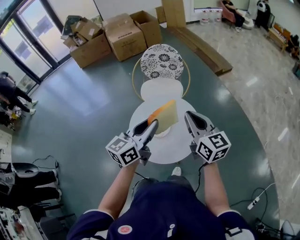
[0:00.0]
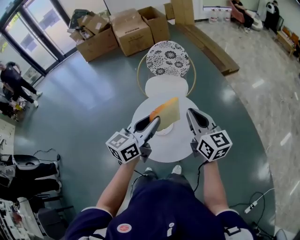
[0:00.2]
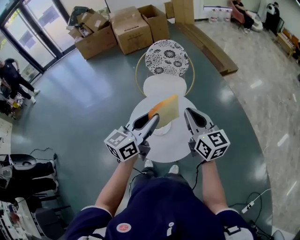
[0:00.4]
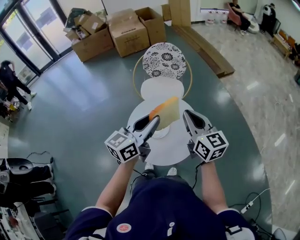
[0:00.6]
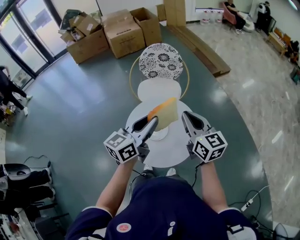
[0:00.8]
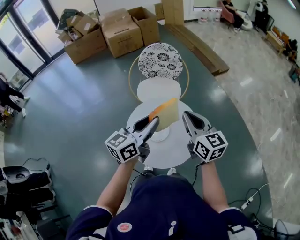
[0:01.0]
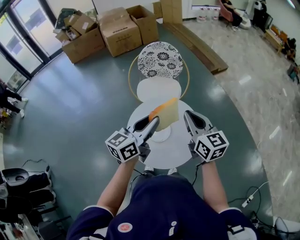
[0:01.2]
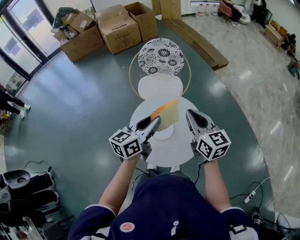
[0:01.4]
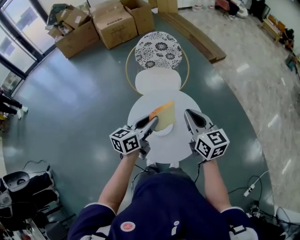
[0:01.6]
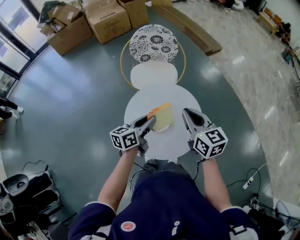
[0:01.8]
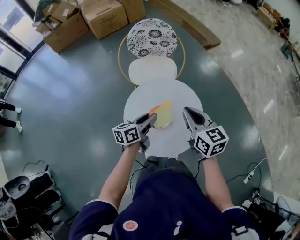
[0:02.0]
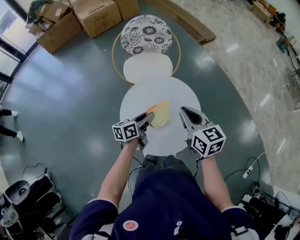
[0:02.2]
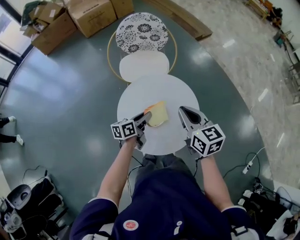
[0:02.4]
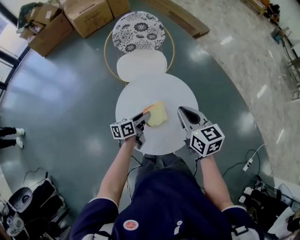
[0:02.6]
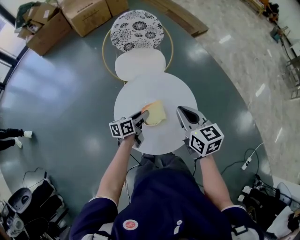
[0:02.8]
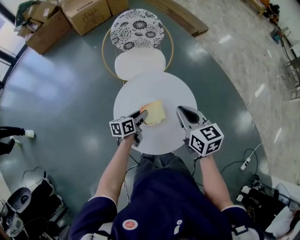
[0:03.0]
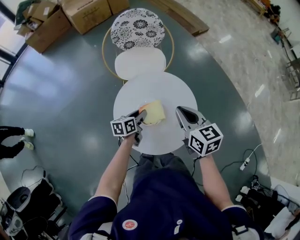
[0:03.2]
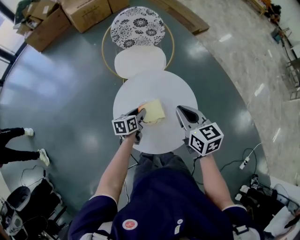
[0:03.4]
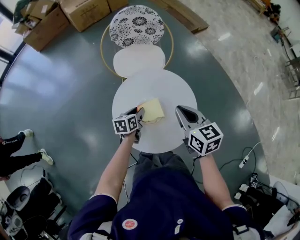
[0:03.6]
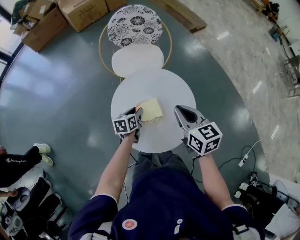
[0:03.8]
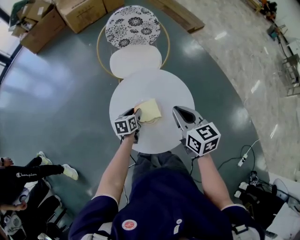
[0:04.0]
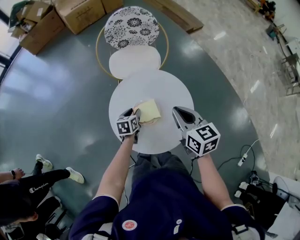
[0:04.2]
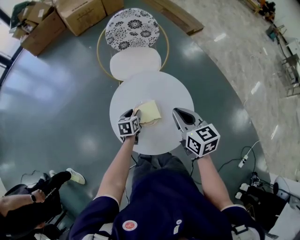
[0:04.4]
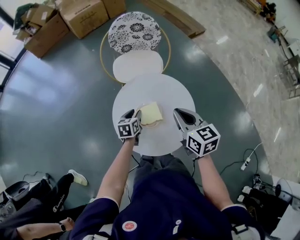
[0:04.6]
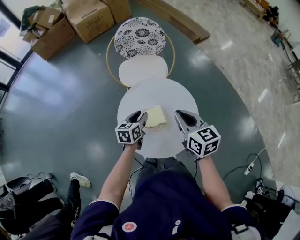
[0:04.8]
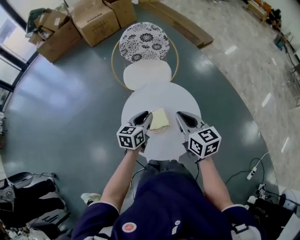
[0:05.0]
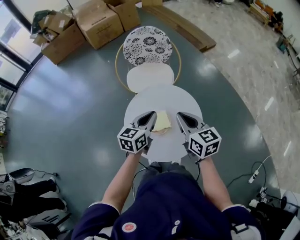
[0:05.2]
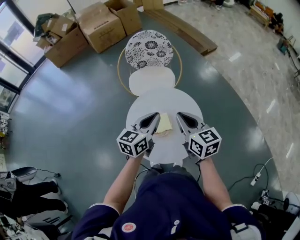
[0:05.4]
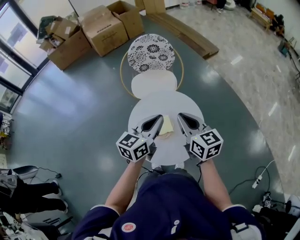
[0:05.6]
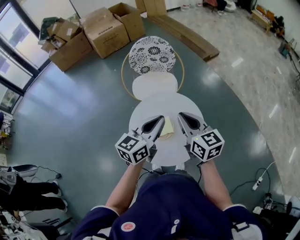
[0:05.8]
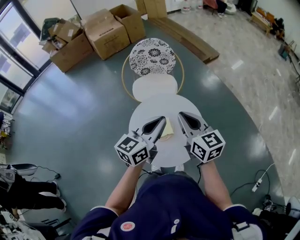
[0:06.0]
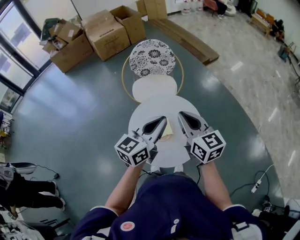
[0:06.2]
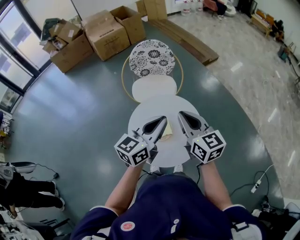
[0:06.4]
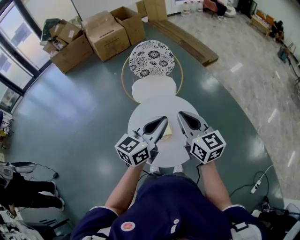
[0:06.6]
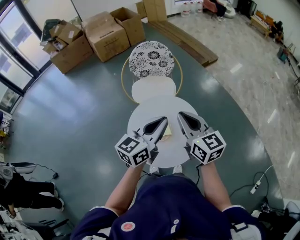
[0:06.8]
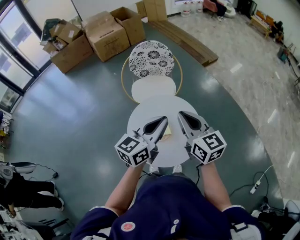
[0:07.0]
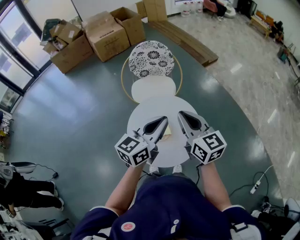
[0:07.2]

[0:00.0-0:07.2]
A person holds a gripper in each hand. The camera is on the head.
0.0 to 1.4 s: The left gripper travels forward and downward by roughly 10 cm. The right gripper moves forward, approximately 5 cm.
1.4 to 2.8 s: The left gripper travels downward by approximately 25 cm, and swivels some 30 degrees. Meanwhile the right gripper travels downward by about 10 cm.
2.8 to 4.4 s: The left gripper heads downward, covering about 5 cm, and swivels about 30 degrees.
4.4 to 5.8 s: The right gripper is displaced upward by about 10 cm, while the left gripper heads upward, covering some 30 cm, angles its fingers upward, by some 40 degrees, and closes up.
5.8 to 7.2 s: The grippers stay close to where they were, moving slightly.

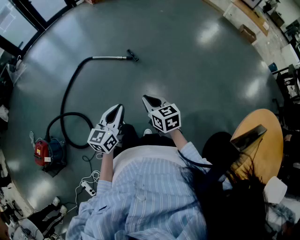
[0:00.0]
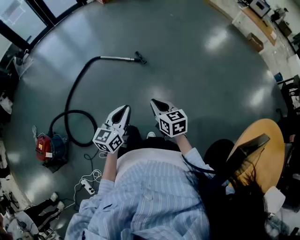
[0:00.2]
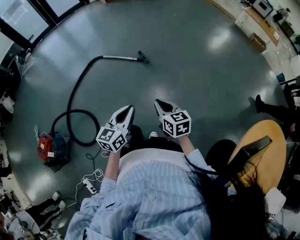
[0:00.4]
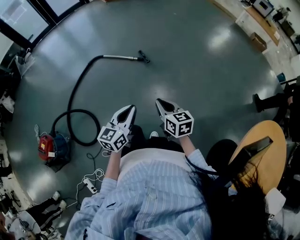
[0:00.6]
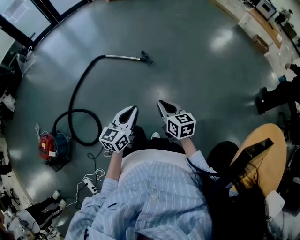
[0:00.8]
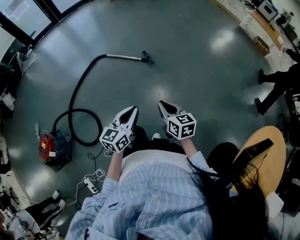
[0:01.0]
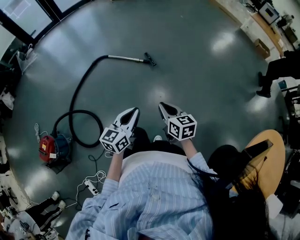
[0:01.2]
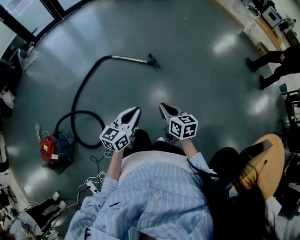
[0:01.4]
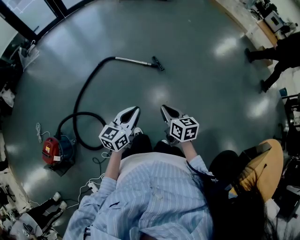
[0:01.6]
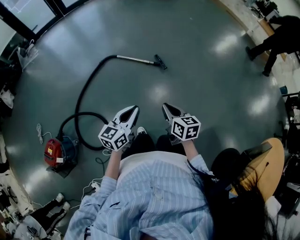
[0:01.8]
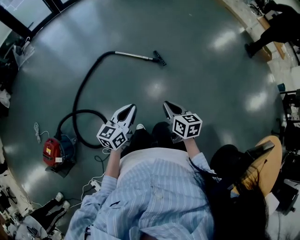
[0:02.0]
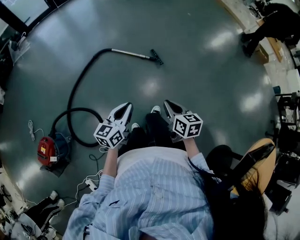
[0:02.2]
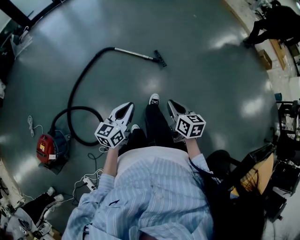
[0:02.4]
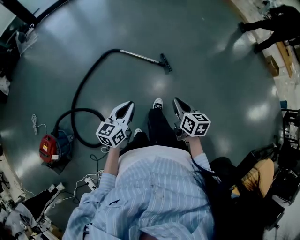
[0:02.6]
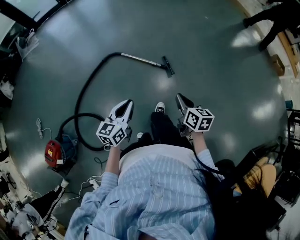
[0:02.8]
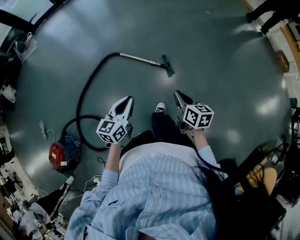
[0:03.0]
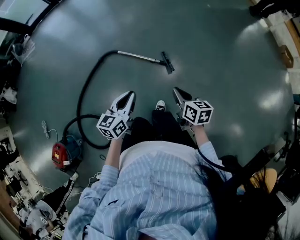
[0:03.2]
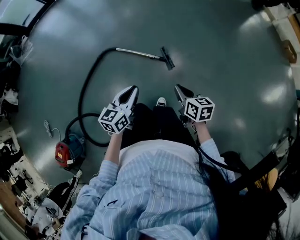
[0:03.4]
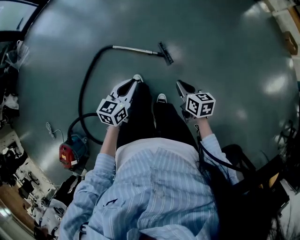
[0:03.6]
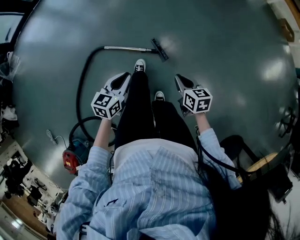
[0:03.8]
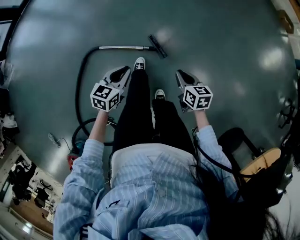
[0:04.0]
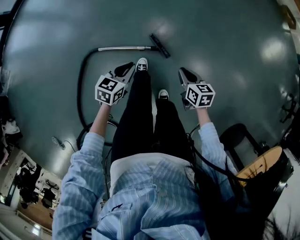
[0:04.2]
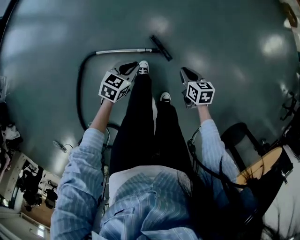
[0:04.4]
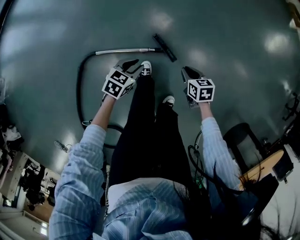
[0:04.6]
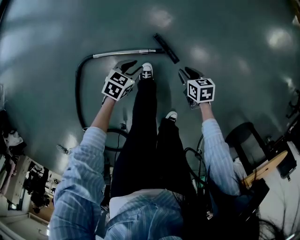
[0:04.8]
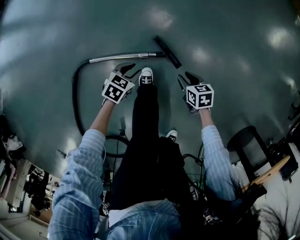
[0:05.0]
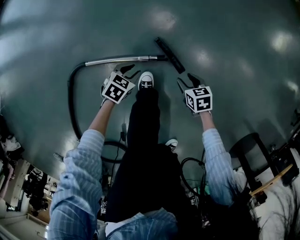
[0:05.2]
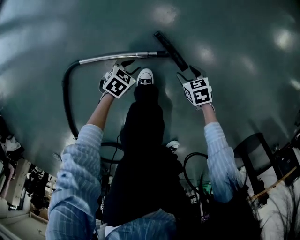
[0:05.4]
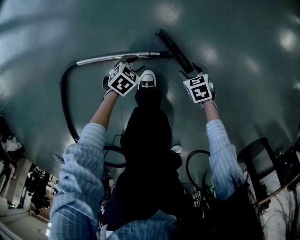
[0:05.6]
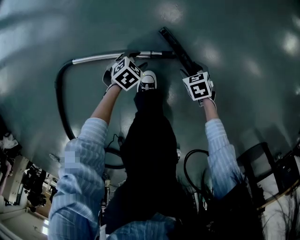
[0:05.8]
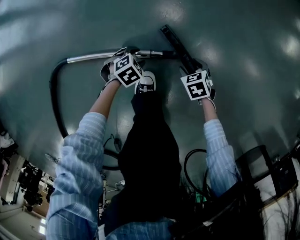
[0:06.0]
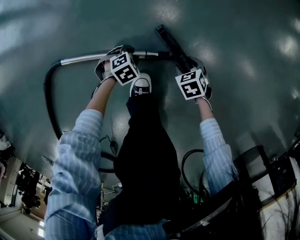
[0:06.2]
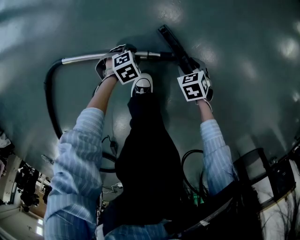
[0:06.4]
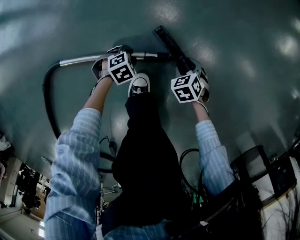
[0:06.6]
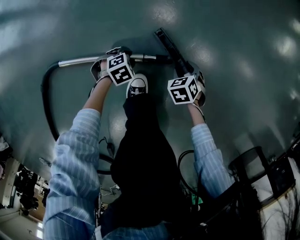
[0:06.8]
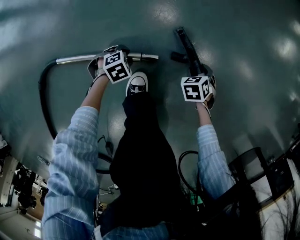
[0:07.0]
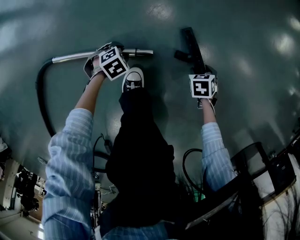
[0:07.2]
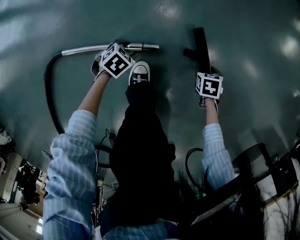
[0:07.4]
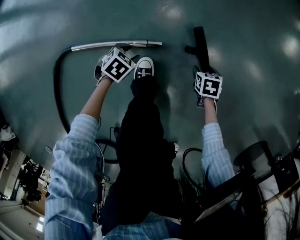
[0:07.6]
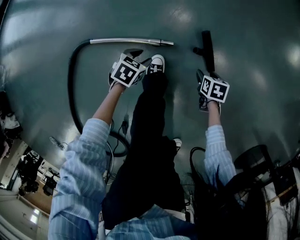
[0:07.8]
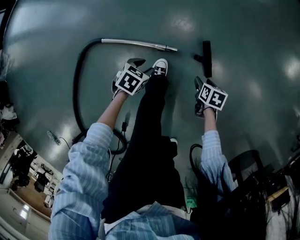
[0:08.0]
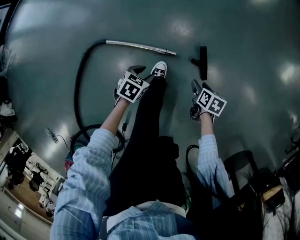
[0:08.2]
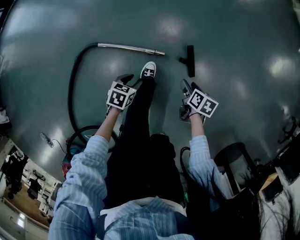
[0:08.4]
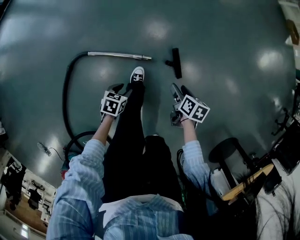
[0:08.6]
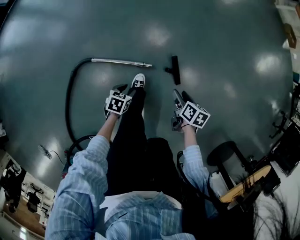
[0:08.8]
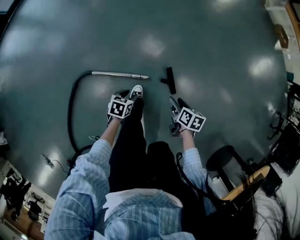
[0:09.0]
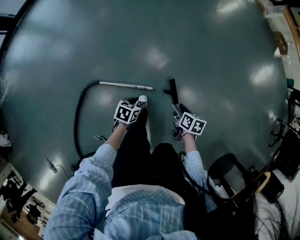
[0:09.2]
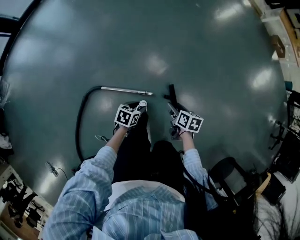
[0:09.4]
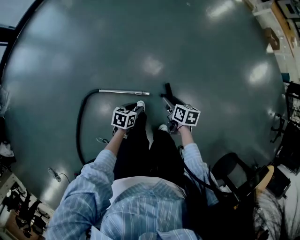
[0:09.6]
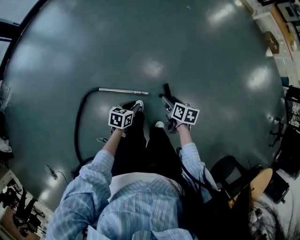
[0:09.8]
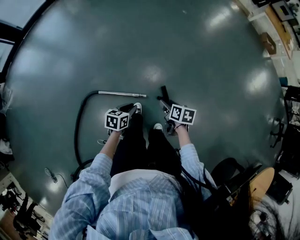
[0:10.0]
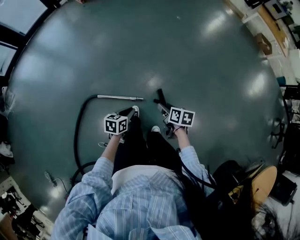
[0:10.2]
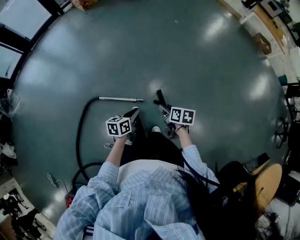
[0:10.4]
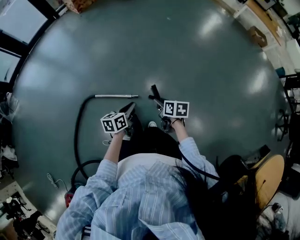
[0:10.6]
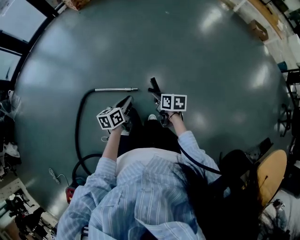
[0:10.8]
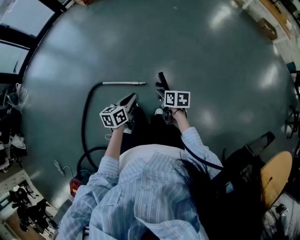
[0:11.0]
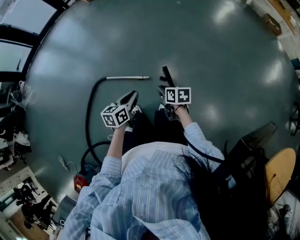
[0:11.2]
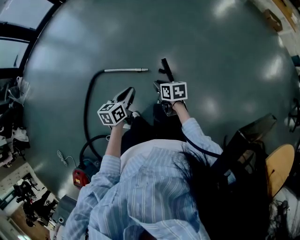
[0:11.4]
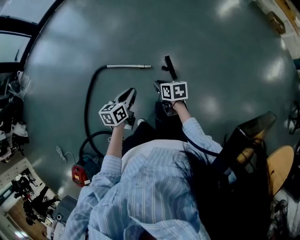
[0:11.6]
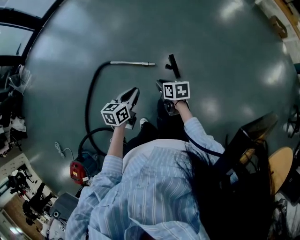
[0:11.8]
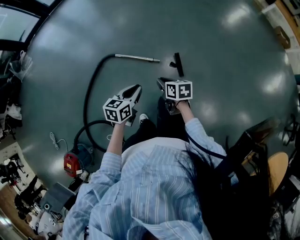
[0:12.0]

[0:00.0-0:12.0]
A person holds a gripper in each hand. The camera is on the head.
0.0 to 1.6 s: The two grippers go roughly 15 cm to the left and forward.
1.6 to 3.0 s: Both grippers travel together forward, roughly 30 cm.
3.0 to 4.4 s: The right gripper shifts by approximately 40 cm, and turns by some 20 degrees. Meanwhile the left gripper moves approximately 50 cm, and swivels approximately 50 degrees.
4.4 to 6.0 s: Both grippers move downward, about 50 cm. The right gripper turns by some 40 degrees, and opens up; the left gripper turns by some 40 degrees, and opens its fingers.
6.0 to 7.6 s: The right gripper shifts by some 15 cm, and rotates about 30 degrees, while the left gripper goes approximately 10 cm upward.
7.6 to 9.0 s: Both grippers move upward, about 40 cm. The left gripper changes its angle by about 40 degrees, while the right gripper rotates about 30 degrees.
9.0 to 10.4 s: The left gripper travels upward and to the right by roughly 30 cm, rotates approximately 30 degrees, and closes; the right gripper travels upward by roughly 20 cm.
10.4 to 12.0 s: The left gripper shifts roughly 20 cm backward. The right gripper is displaced backward and to the left by roughly 20 cm, rotates approximately 20 degrees, and closes up.

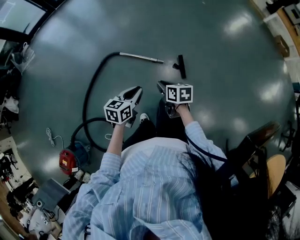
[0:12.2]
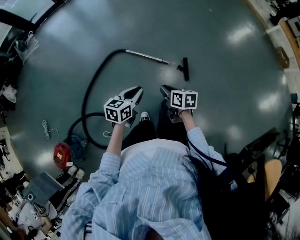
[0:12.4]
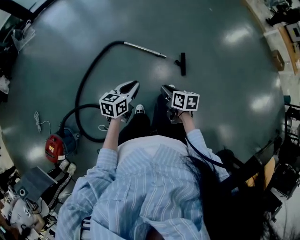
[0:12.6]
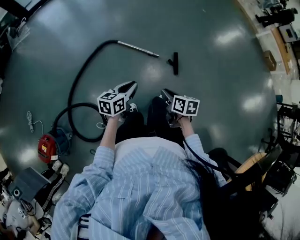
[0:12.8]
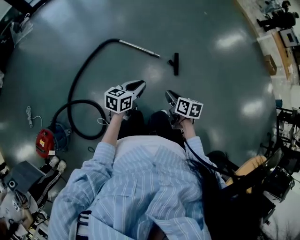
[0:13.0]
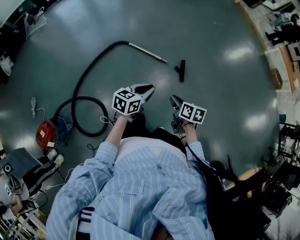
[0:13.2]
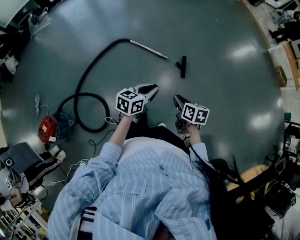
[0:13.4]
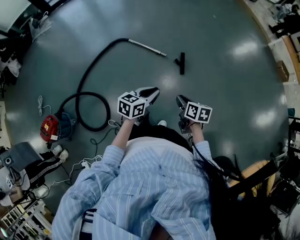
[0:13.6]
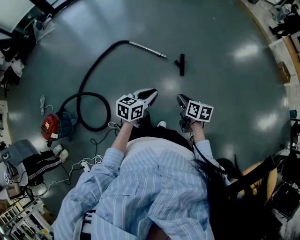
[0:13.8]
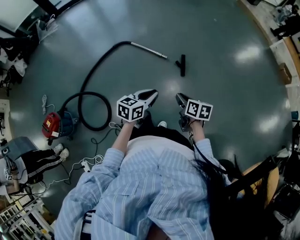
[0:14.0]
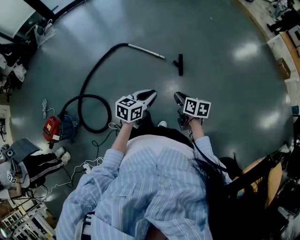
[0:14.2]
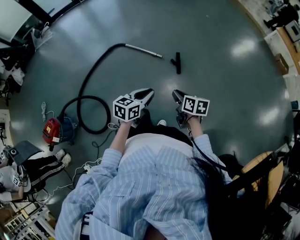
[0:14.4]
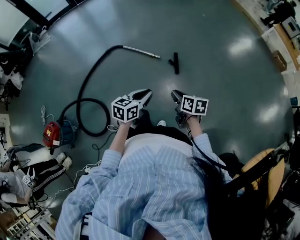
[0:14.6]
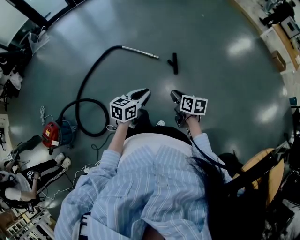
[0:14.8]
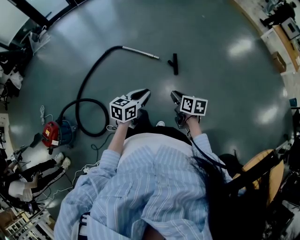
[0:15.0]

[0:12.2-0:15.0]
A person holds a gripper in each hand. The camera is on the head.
12.2 to 13.6 s: Both grippers travel together backward and to the right, about 25 cm.
13.6 to 15.0 s: The right gripper shifts by about 5 cm; the left gripper is displaced backward by roughly 5 cm.

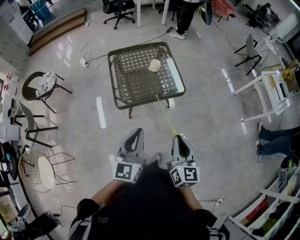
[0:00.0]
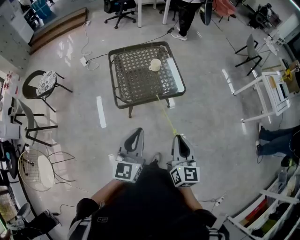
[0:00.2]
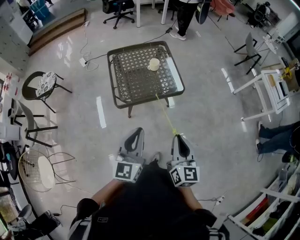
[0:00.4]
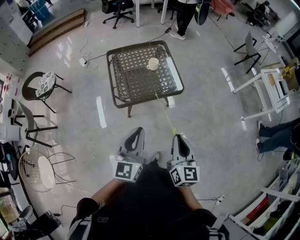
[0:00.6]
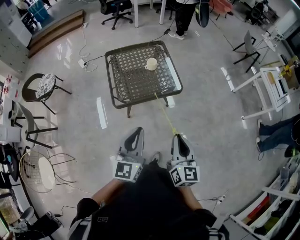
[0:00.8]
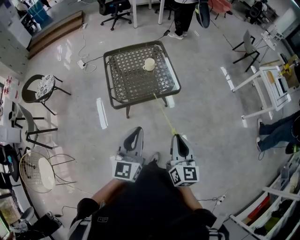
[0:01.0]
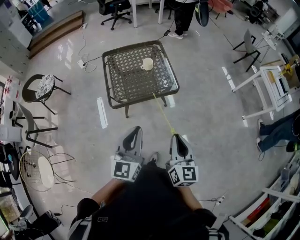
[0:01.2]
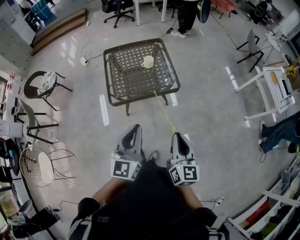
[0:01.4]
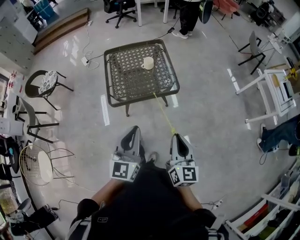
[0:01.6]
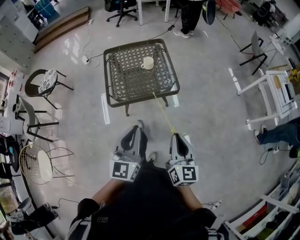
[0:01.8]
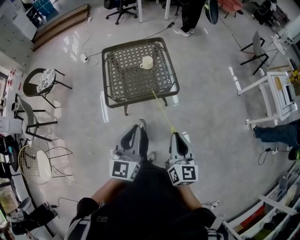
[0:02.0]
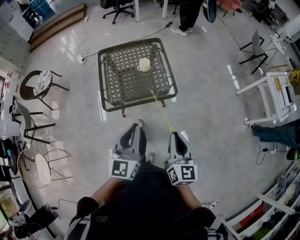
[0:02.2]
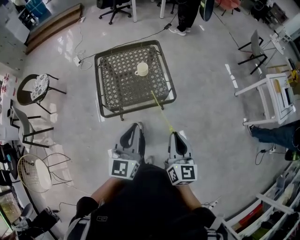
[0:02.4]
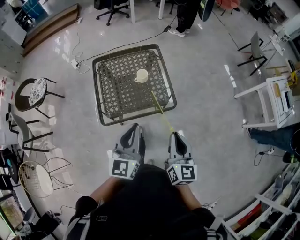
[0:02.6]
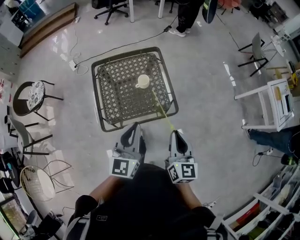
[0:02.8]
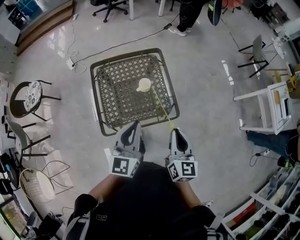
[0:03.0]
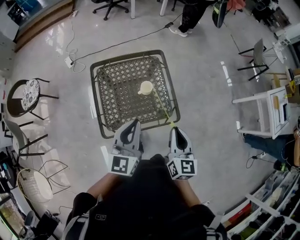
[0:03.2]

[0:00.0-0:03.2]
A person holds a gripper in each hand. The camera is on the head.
0.0 to 1.6 s: Both grippers travel together to the right, approximately 10 cm.
1.6 to 3.2 s: Both grippers move forward, about 40 cm.
